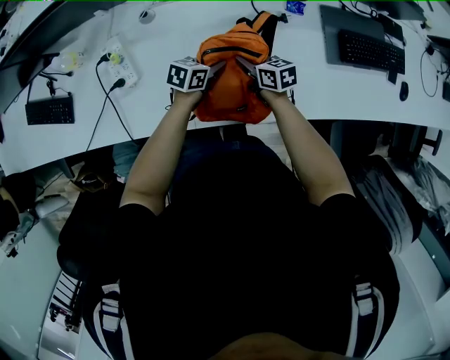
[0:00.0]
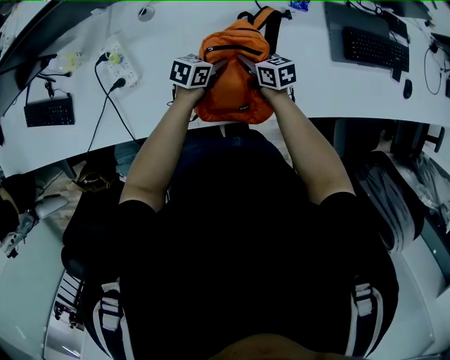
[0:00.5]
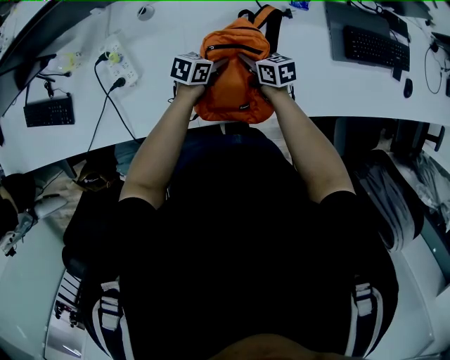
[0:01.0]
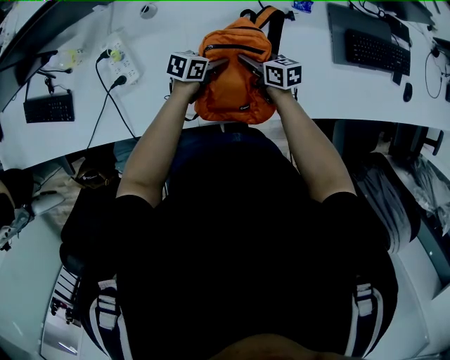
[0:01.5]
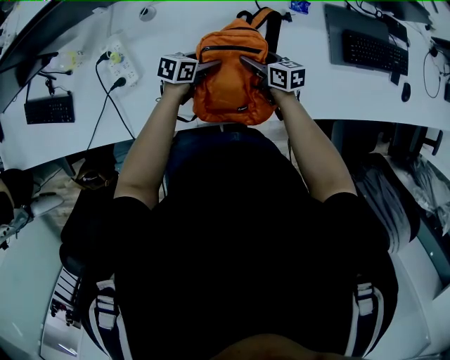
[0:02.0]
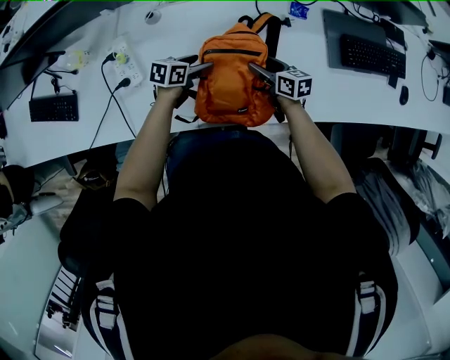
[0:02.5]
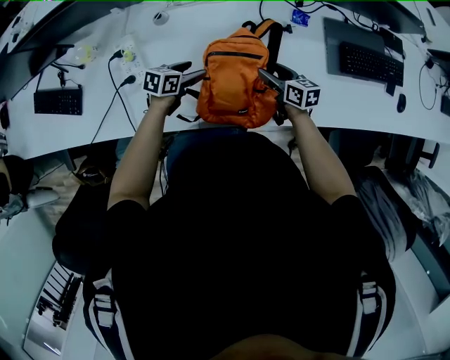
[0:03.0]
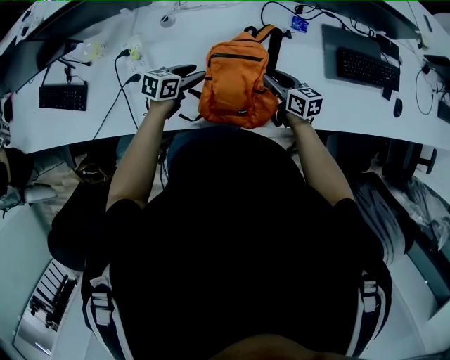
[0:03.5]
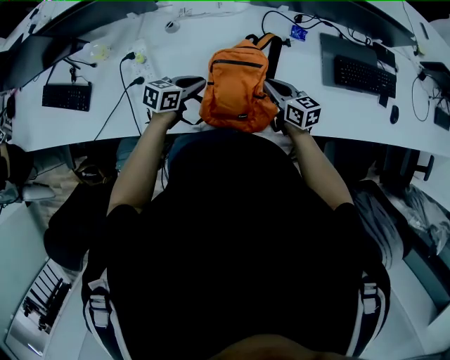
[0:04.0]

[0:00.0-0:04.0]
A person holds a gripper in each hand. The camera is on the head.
0:00.0 to 0:02.0: The left gripper changes place by approximately 5 cm, and opens up, while the right gripper opens up.
0:02.0 to 0:04.0: Both grippers move upward and backward, roughly 15 cm. The left gripper closes its fingers; the right gripper closes.

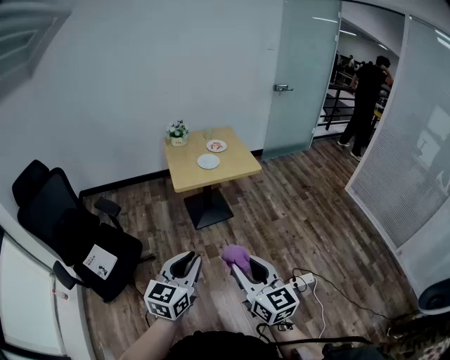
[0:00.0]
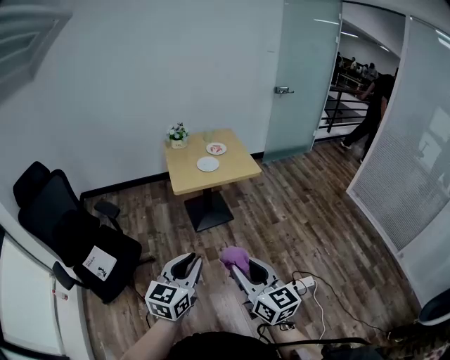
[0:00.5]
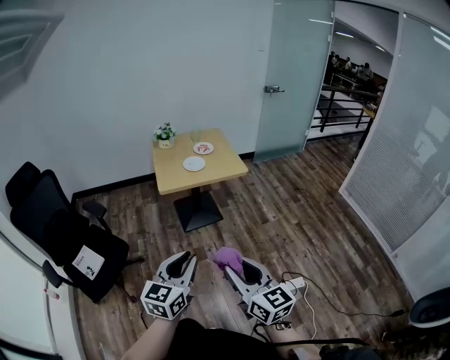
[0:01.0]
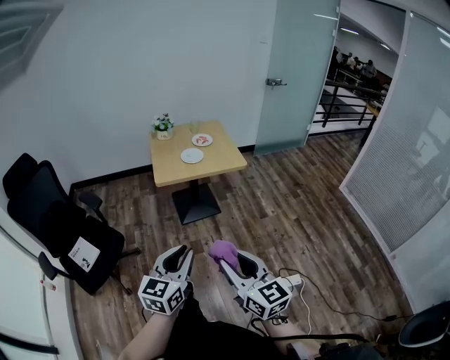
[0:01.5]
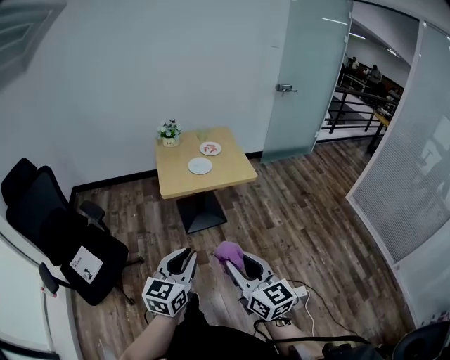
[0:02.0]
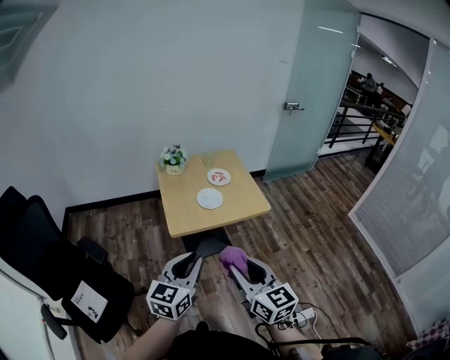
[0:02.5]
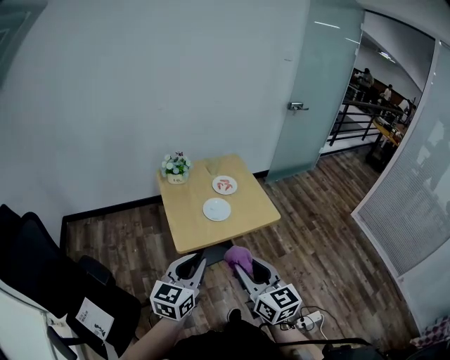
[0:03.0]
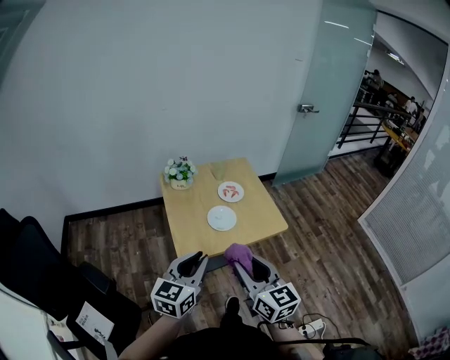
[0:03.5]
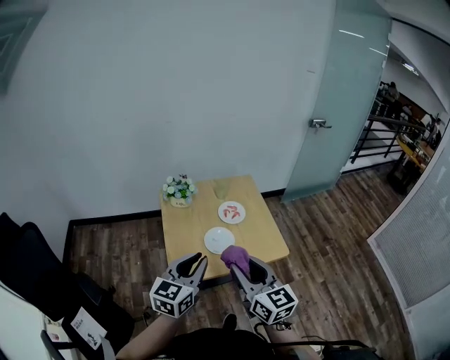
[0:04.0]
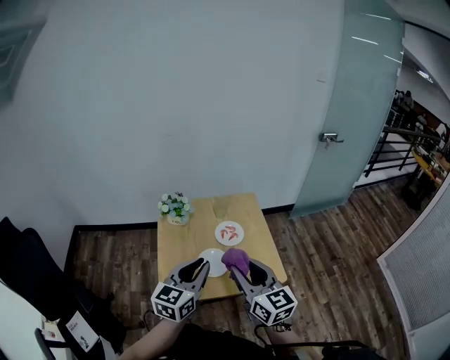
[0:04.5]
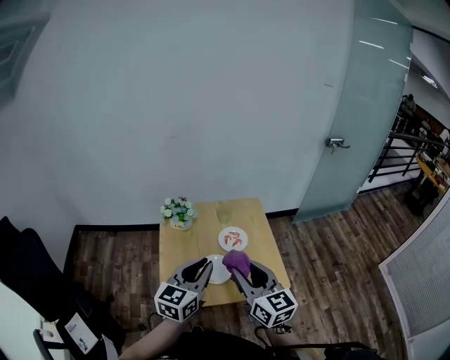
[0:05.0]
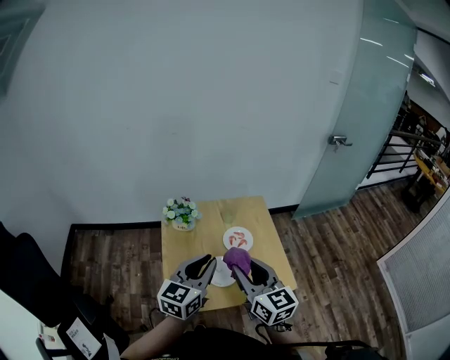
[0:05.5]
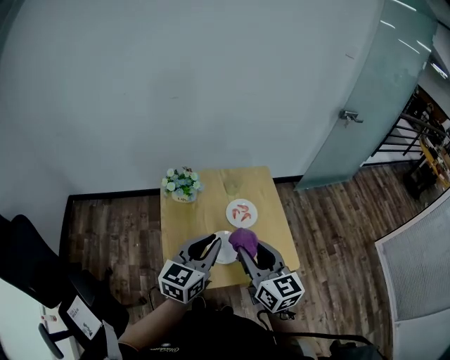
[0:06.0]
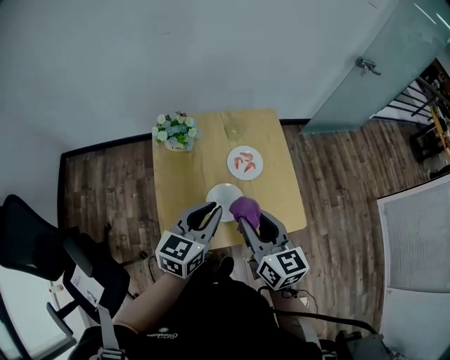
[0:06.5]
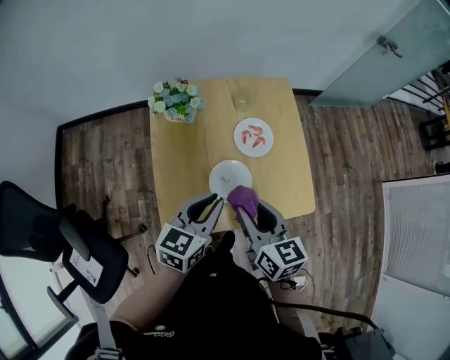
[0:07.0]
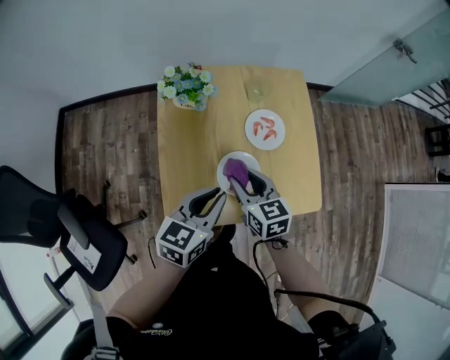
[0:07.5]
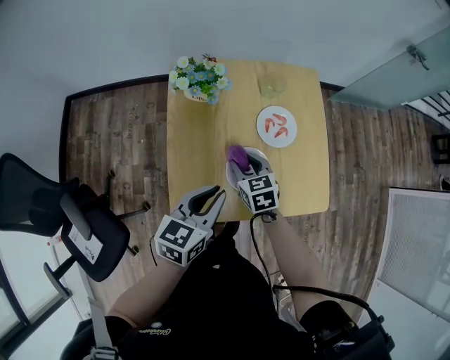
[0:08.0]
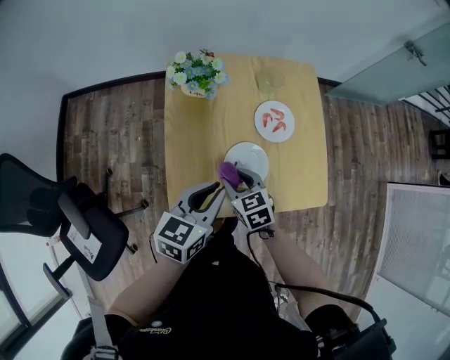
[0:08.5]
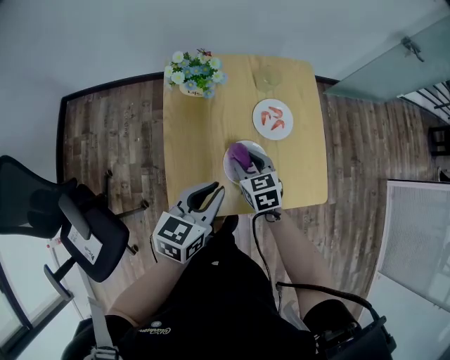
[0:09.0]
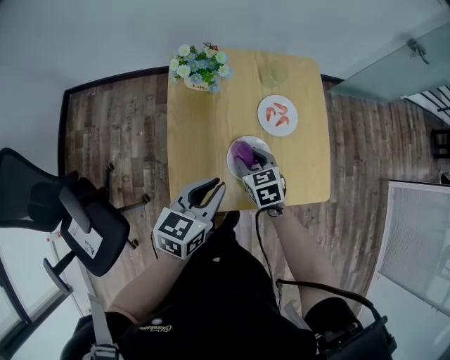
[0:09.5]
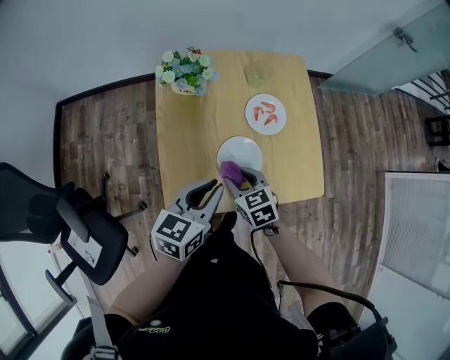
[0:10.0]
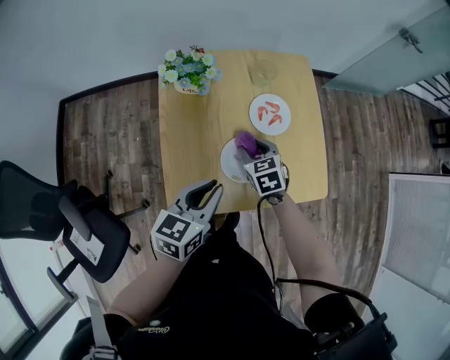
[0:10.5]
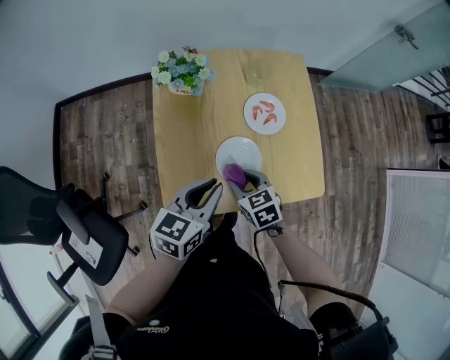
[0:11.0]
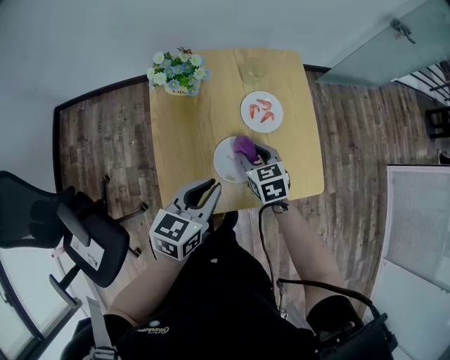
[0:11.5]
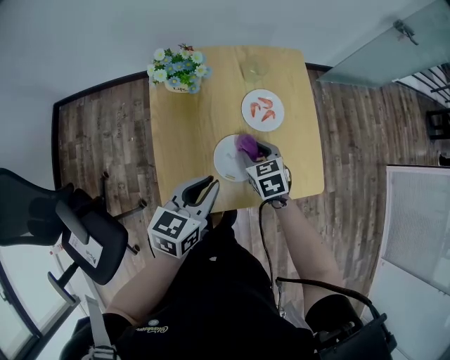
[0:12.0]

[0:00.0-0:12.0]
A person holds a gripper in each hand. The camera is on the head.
0:00.0 to 0:02.0: Both grippers move forward and to the right, about 15 cm.
0:02.0 to 0:04.0: The pair of grippers is taken forward, about 50 cm.
0:04.0 to 0:06.0: Both grippers travel together forward, some 20 cm.
0:06.0 to 0:08.0: The right gripper travels downward by some 30 cm, and tilts its fingers approximately 40 degrees downward; the left gripper is displaced downward by roughly 15 cm, and changes its angle by about 20 degrees.
0:08.0 to 0:10.0: The right gripper swings forward and backward, approximately 10 cm each way, with 2 reversals.
0:10.0 to 0:12.0: The right gripper moves forward and backward over approximately 10 cm, changing direction 2 times.

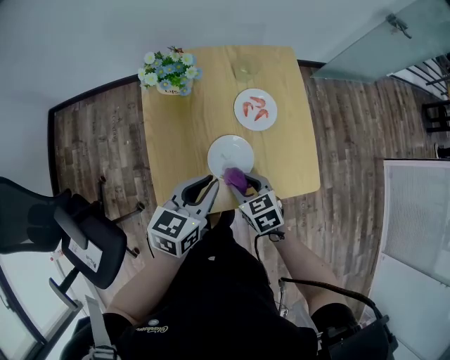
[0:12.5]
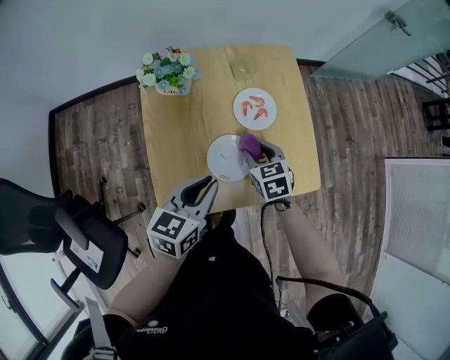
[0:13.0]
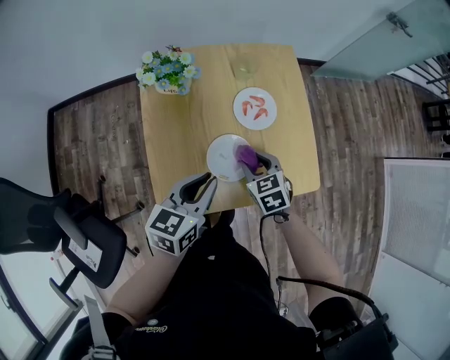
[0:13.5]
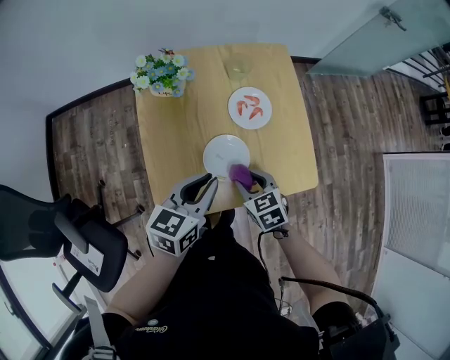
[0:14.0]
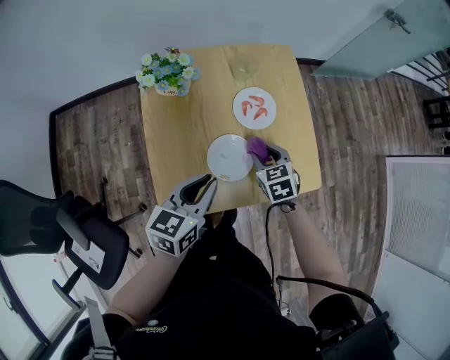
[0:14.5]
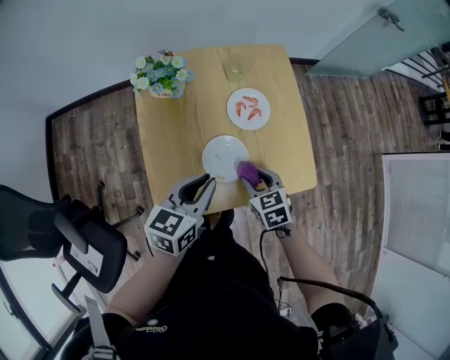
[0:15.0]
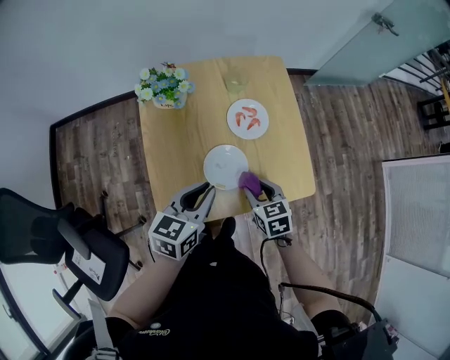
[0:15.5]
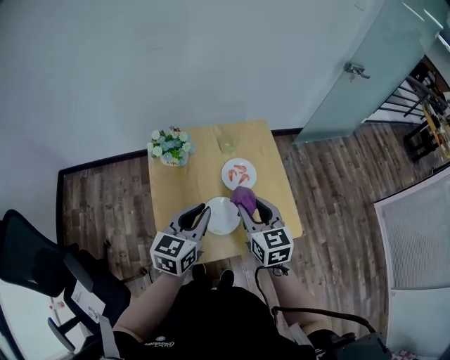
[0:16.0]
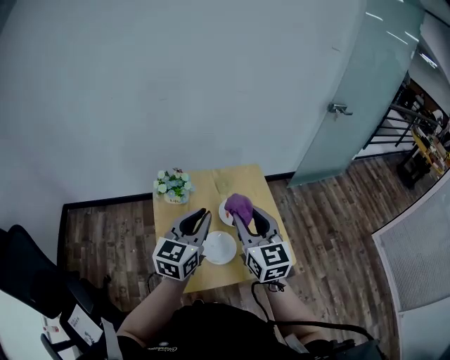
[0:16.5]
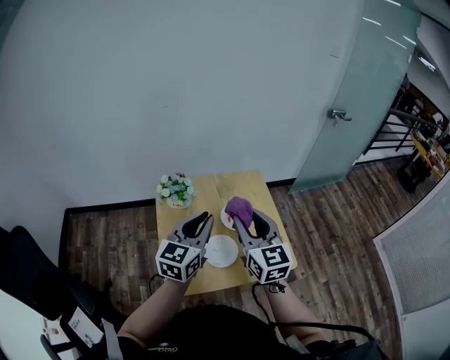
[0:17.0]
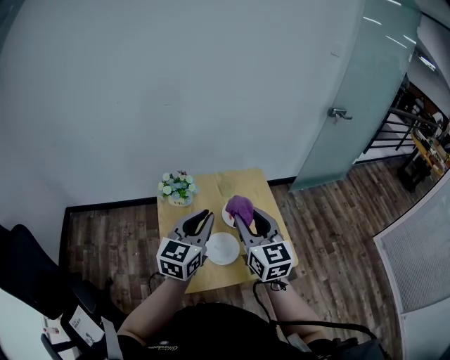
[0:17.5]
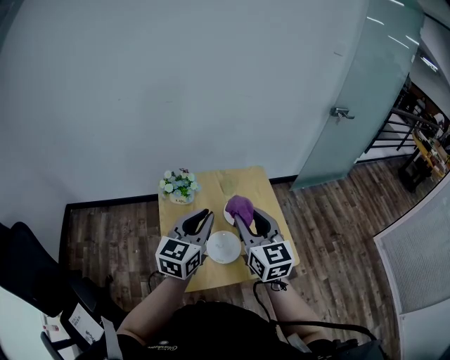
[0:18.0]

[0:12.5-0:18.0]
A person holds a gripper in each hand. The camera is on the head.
0:12.5 to 0:14.5: The right gripper moves forward and backward over about 10 cm, changing direction 2 times.
0:14.5 to 0:16.0: The left gripper shifts some 10 cm upward; the right gripper goes some 20 cm upward, and turns by approximately 30 degrees.
0:16.0 to 0:18.0: Both grippers travel together upward, roughly 10 cm.

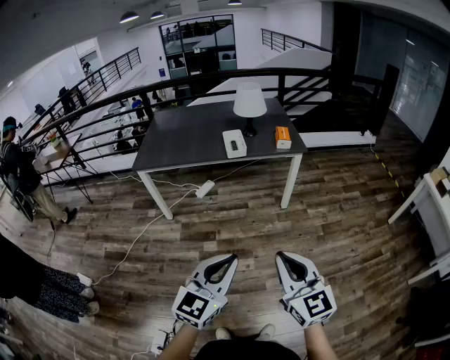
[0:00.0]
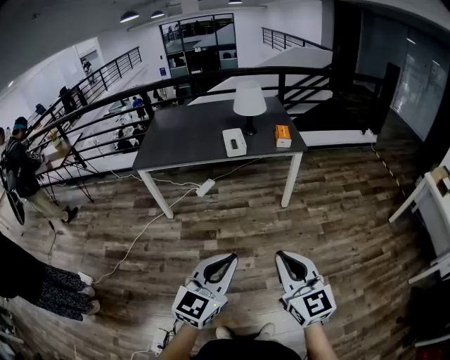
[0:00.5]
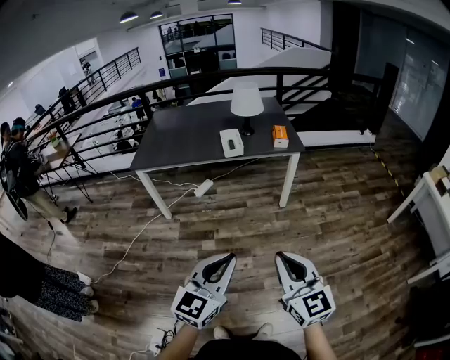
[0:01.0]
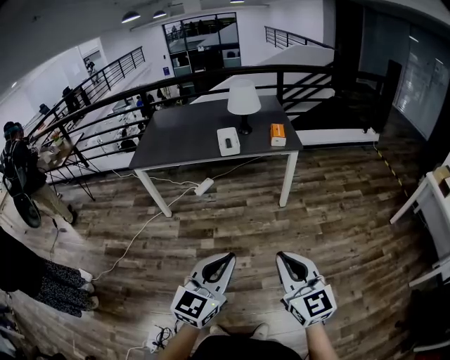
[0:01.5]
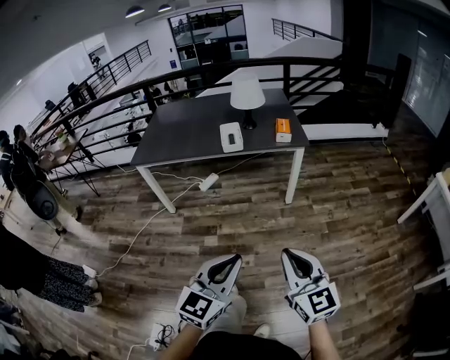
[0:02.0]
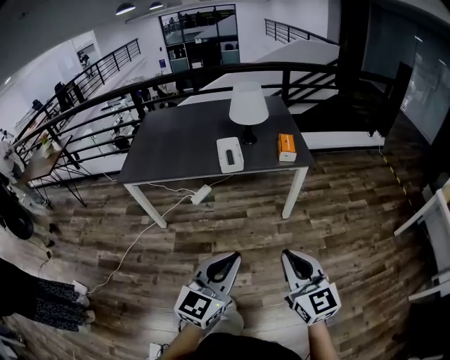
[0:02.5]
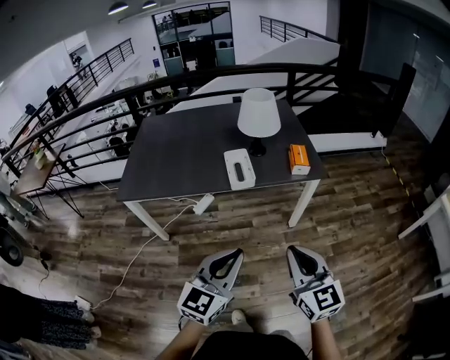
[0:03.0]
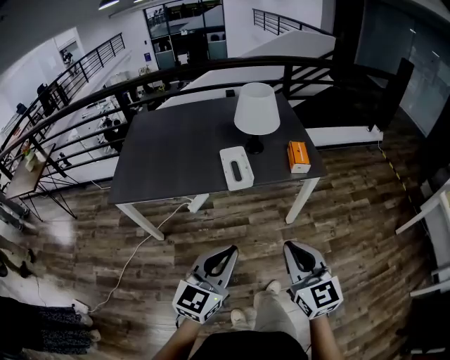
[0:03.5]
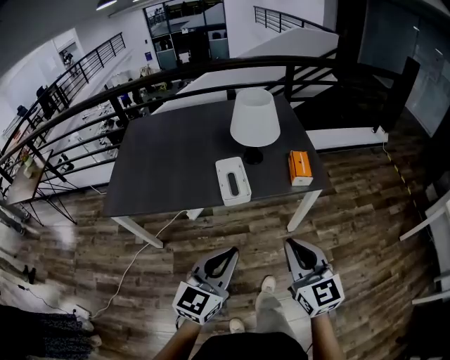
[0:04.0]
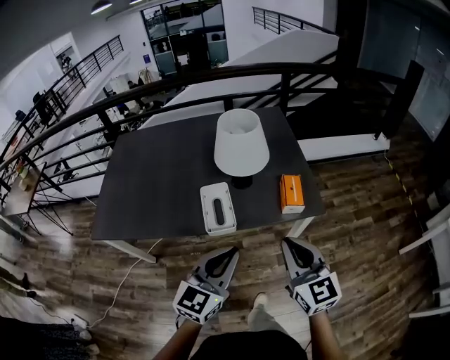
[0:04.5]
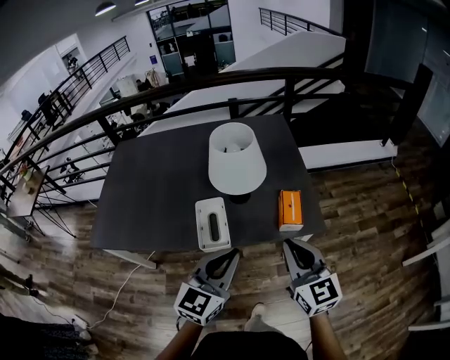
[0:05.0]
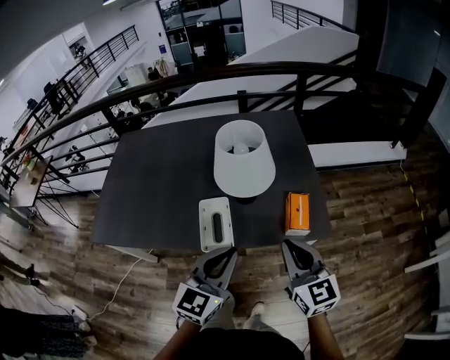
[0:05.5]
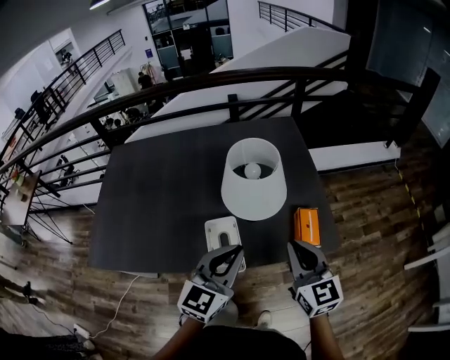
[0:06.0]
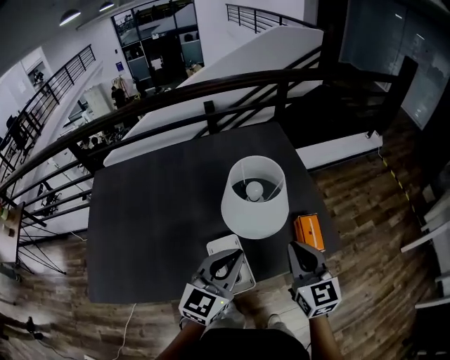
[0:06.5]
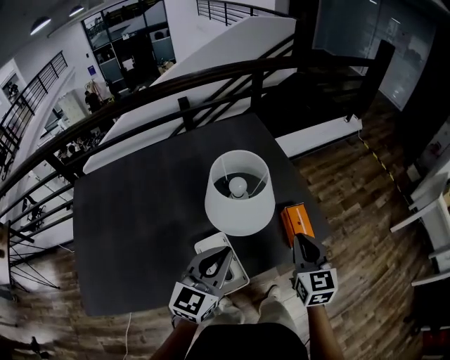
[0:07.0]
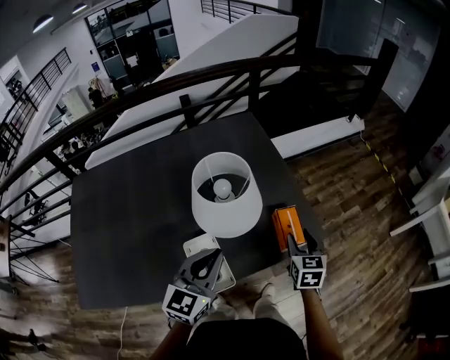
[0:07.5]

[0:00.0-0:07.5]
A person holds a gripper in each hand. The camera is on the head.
0:00.0 to 0:02.0: The grippers both shift to the right by some 10 cm.
0:02.0 to 0:04.0: The two grippers travel together, forward, about 40 cm.
0:04.0 to 0:05.5: Both grippers move forward, roughly 20 cm.
0:05.5 to 0:07.5: The left gripper shifts by roughly 15 cm. Meanwhile the right gripper ends up approximately 20 cm from where it was, turns by about 50 degrees, and opens up.
